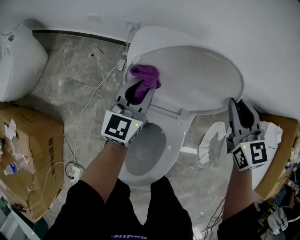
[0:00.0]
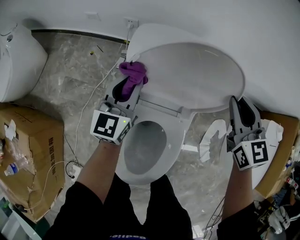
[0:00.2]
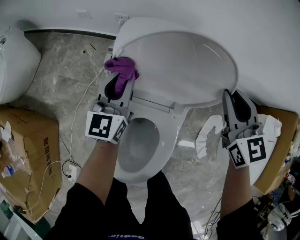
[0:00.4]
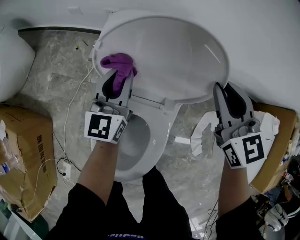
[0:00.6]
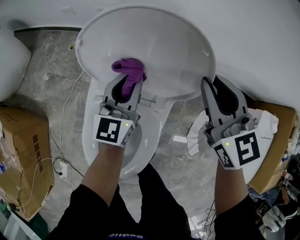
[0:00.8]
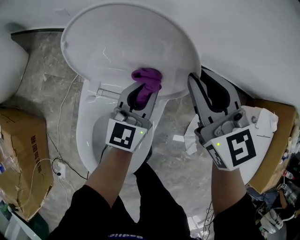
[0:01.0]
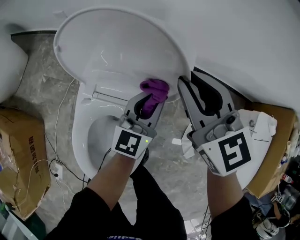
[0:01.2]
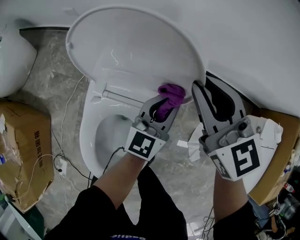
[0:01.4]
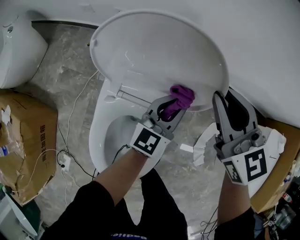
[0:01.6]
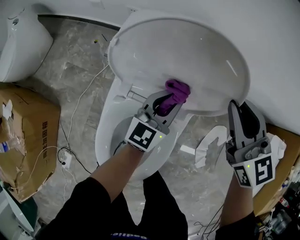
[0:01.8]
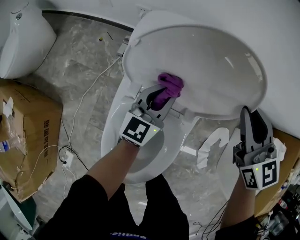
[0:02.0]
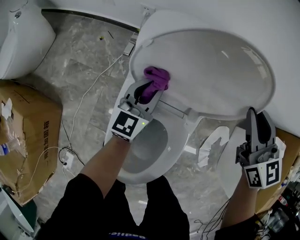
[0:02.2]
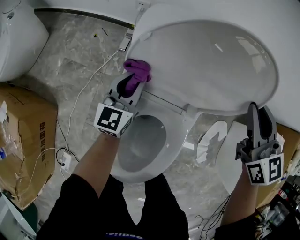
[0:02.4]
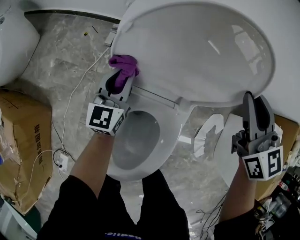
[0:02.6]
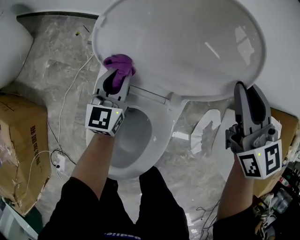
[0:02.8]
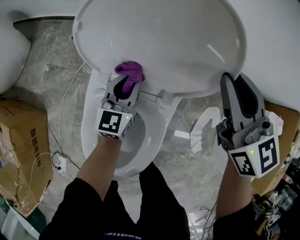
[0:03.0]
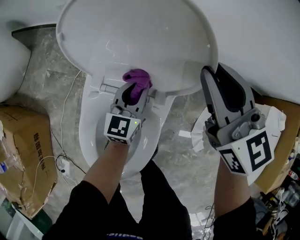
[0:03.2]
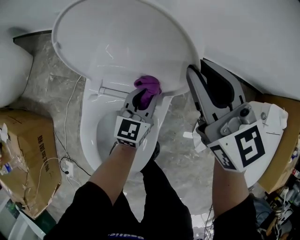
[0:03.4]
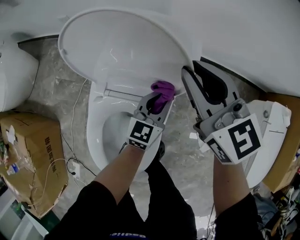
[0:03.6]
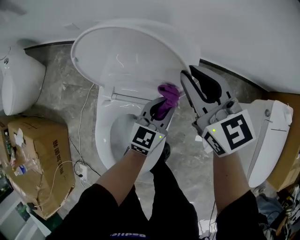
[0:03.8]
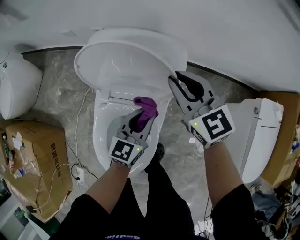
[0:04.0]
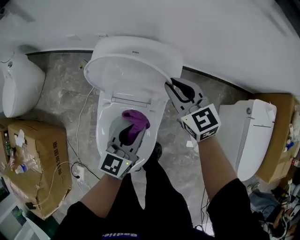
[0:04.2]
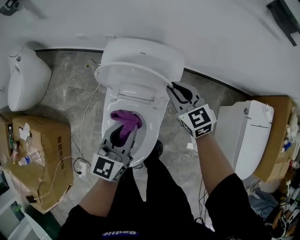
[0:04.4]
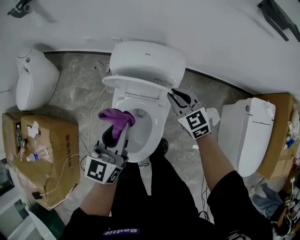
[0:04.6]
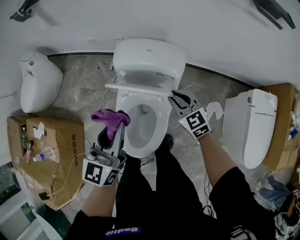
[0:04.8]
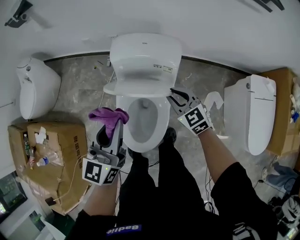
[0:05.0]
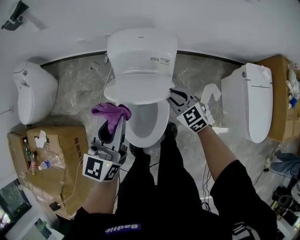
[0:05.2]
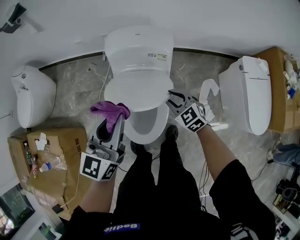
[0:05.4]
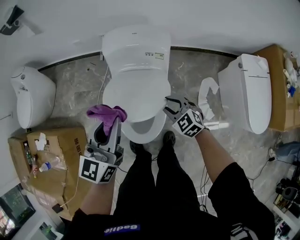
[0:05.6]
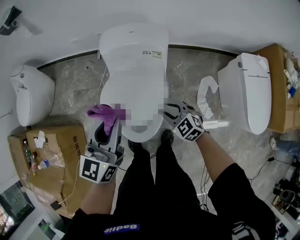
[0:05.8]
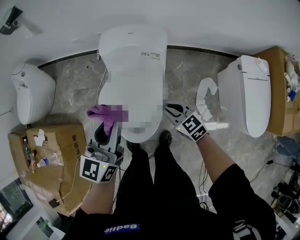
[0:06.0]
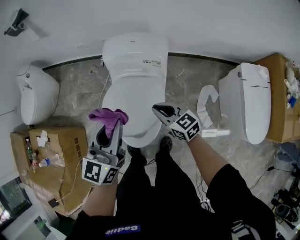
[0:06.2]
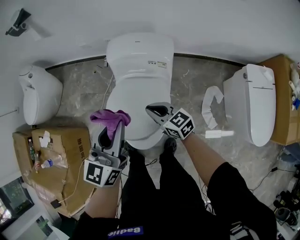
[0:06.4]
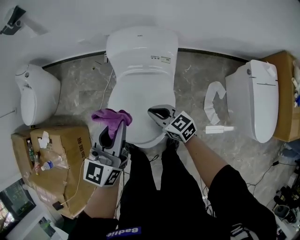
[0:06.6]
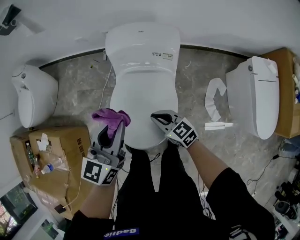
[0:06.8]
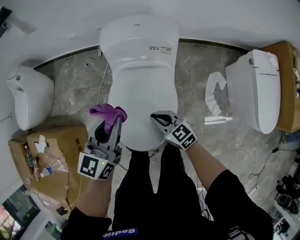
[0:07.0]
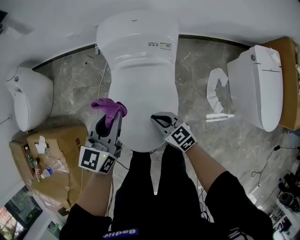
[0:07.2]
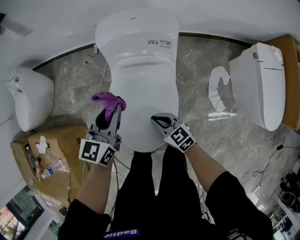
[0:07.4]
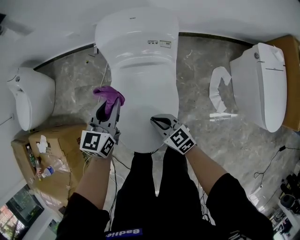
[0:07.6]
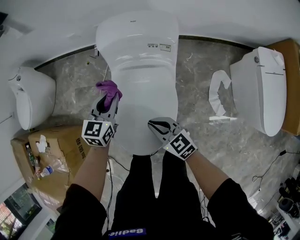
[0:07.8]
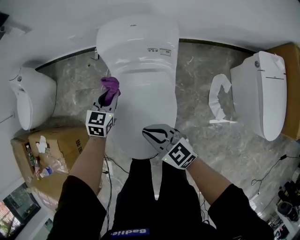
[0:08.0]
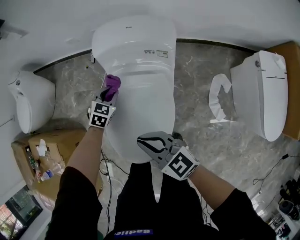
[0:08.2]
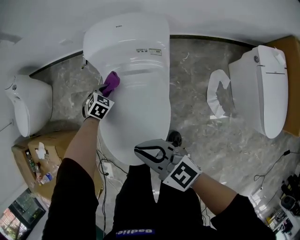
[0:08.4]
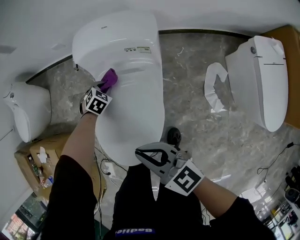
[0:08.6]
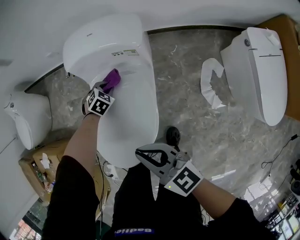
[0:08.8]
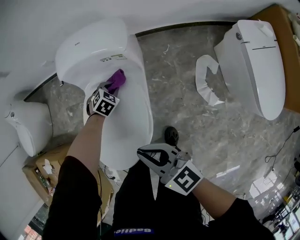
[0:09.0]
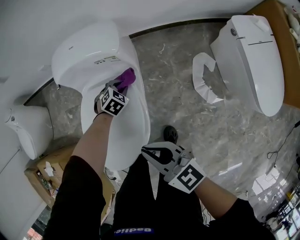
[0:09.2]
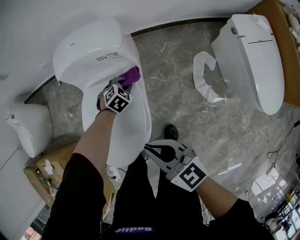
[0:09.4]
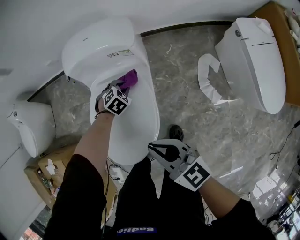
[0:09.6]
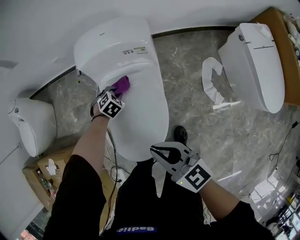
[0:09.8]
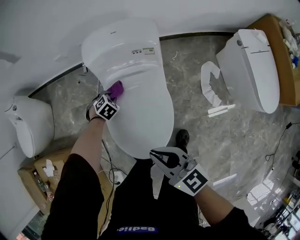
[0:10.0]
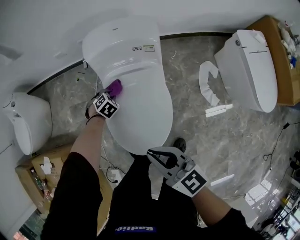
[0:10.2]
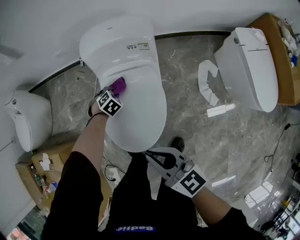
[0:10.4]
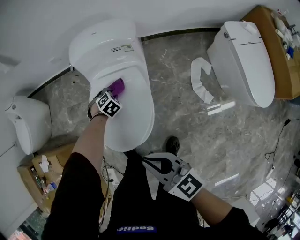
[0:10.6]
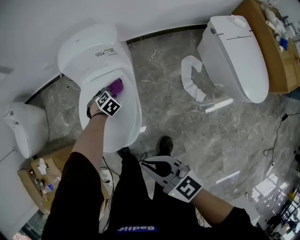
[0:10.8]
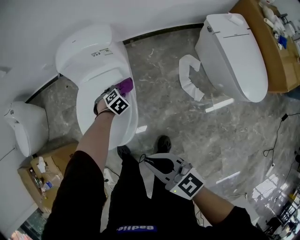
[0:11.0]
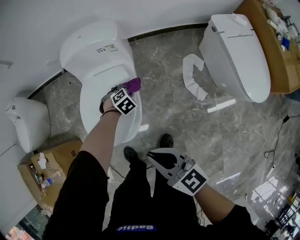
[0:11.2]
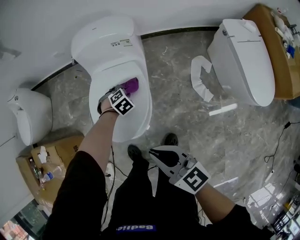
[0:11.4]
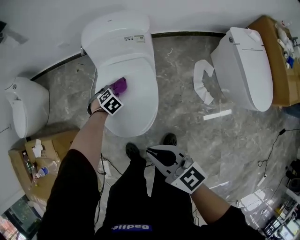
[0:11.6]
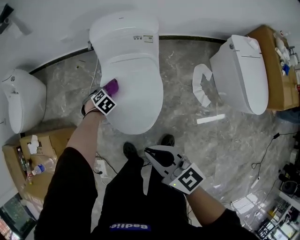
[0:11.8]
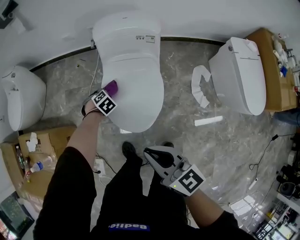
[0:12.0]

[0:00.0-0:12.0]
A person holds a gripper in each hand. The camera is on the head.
0:00.0 to 0:01.6: The left gripper shifts approximately 20 cm to the right.
0:01.6 to 0:03.0: The left gripper heads to the left and downward, covering approximately 15 cm.
0:03.0 to 0:04.4: The left gripper heads upward and backward, covering roughly 30 cm.
0:04.4 to 0:06.0: The left gripper is displaced upward, backward and to the left by about 15 cm. Meanwhile the right gripper heads backward, covering about 25 cm.
0:06.0 to 0:07.6: The right gripper moves to the left and downward, roughly 15 cm. The left gripper heads downward and forward, covering roughly 20 cm.
0:07.6 to 0:09.0: The right gripper travels upward and to the right by about 20 cm; the left gripper travels downward and to the right by approximately 30 cm, and points its fingers some 50 degrees further downward.
0:09.0 to 0:10.4: The left gripper moves some 15 cm, while the right gripper moves approximately 15 cm.

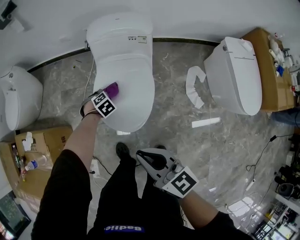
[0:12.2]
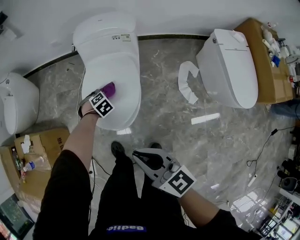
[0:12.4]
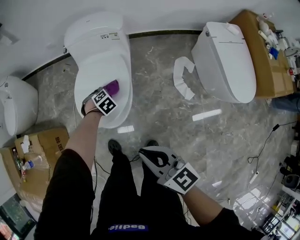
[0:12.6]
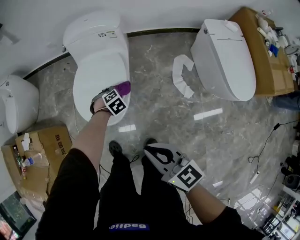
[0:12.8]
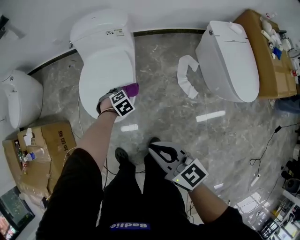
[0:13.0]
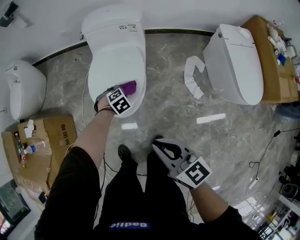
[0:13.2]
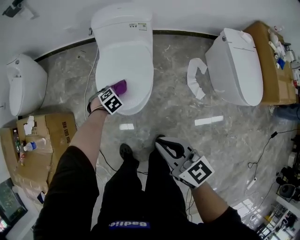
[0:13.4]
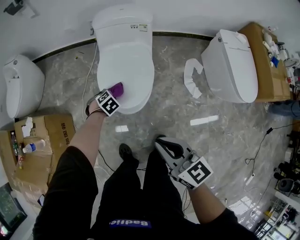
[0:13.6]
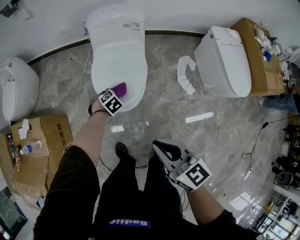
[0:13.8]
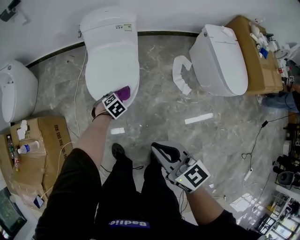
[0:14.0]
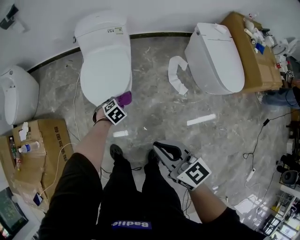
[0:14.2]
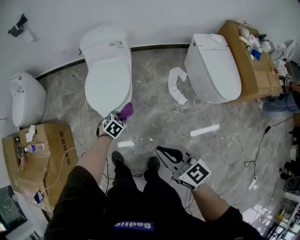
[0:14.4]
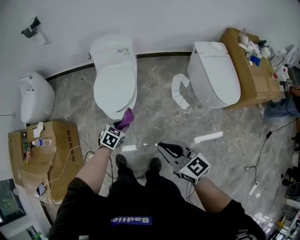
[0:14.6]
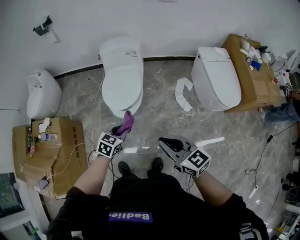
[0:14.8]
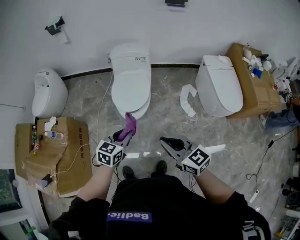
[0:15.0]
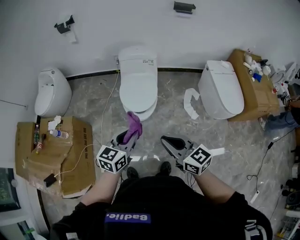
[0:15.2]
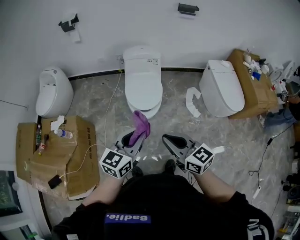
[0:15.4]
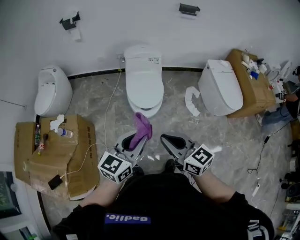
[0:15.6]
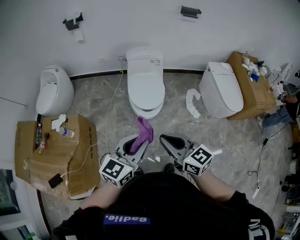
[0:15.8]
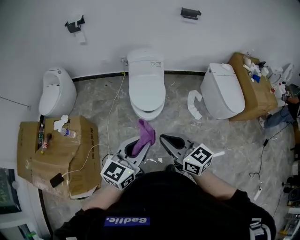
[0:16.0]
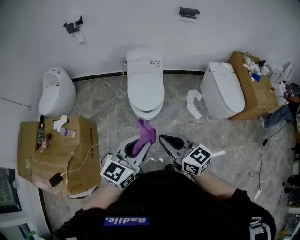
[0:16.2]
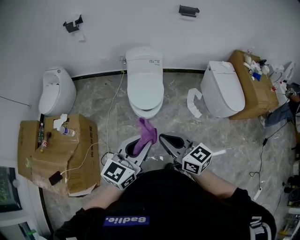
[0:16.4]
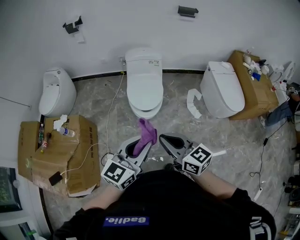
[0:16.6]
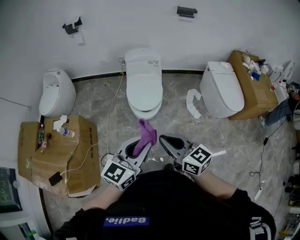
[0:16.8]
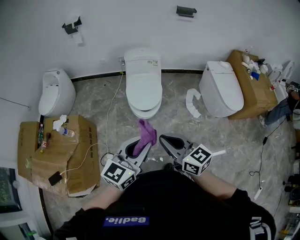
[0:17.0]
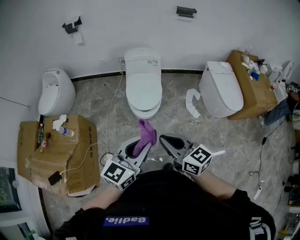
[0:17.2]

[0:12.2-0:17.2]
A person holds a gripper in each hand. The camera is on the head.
0:12.2 to 0:13.8: The right gripper changes place by about 15 cm.
0:13.8 to 0:15.6: The left gripper goes roughly 50 cm upward, and points its fingers roughly 70 degrees further upward, while the right gripper shifts approximately 20 cm upward.
0:15.6 to 0:17.2: The left gripper is displaced to the right by about 5 cm.

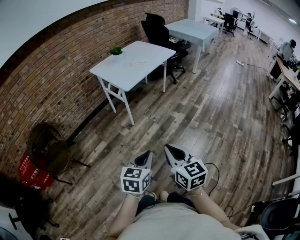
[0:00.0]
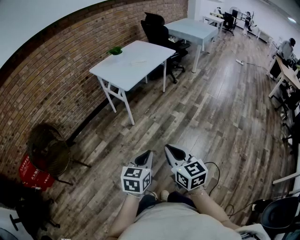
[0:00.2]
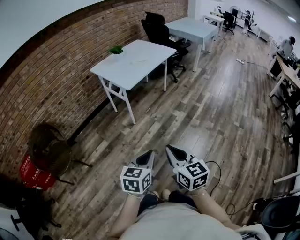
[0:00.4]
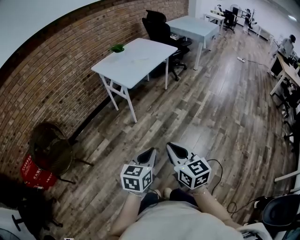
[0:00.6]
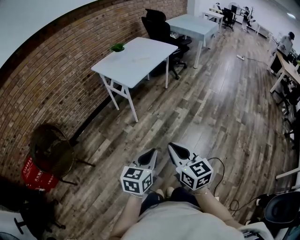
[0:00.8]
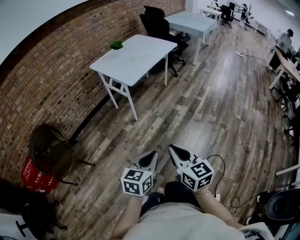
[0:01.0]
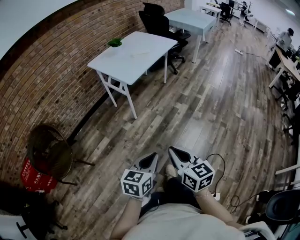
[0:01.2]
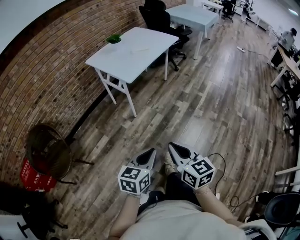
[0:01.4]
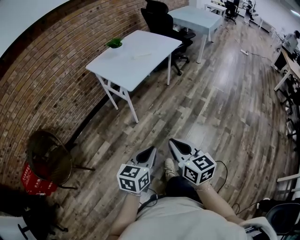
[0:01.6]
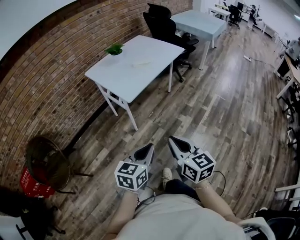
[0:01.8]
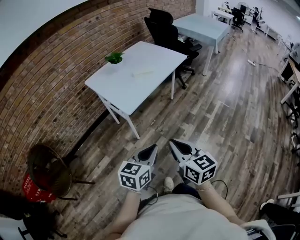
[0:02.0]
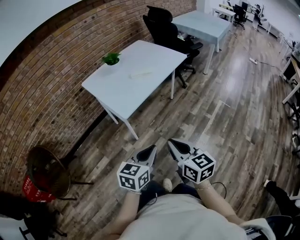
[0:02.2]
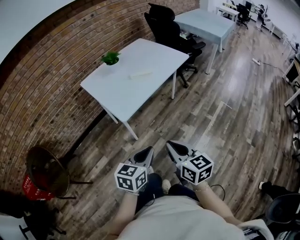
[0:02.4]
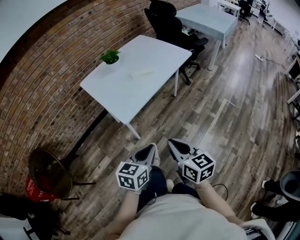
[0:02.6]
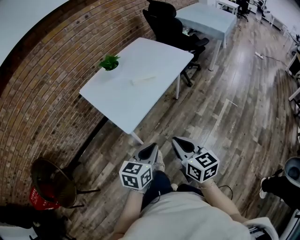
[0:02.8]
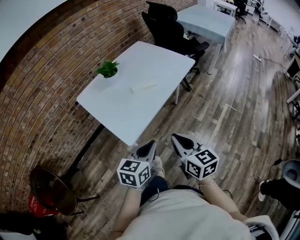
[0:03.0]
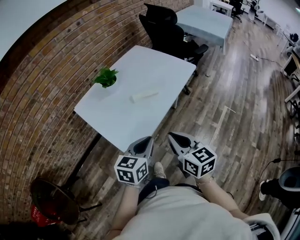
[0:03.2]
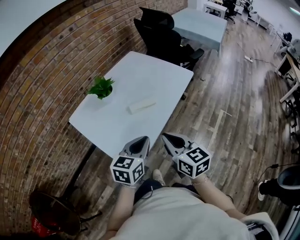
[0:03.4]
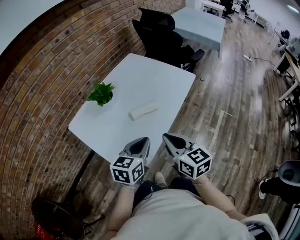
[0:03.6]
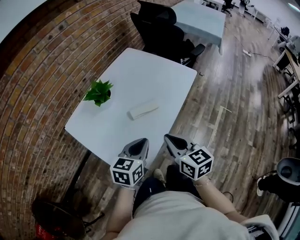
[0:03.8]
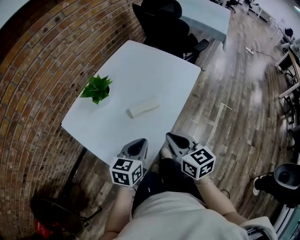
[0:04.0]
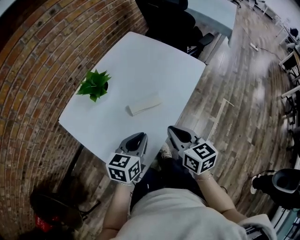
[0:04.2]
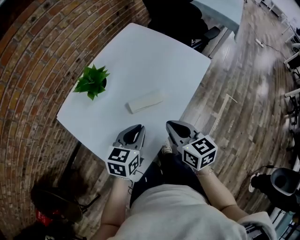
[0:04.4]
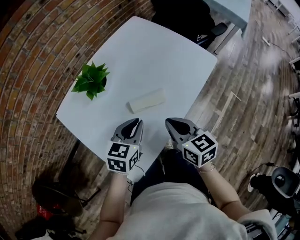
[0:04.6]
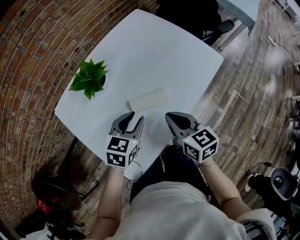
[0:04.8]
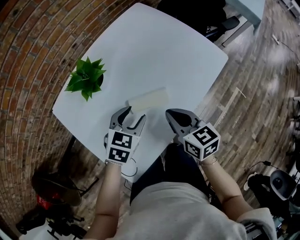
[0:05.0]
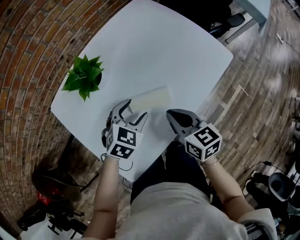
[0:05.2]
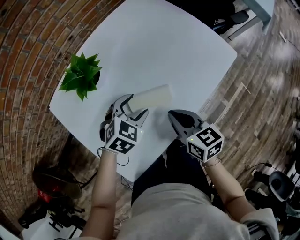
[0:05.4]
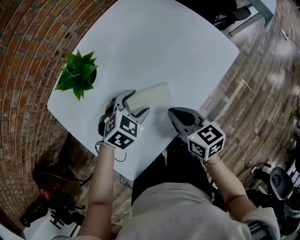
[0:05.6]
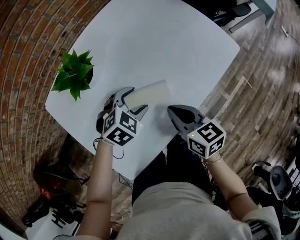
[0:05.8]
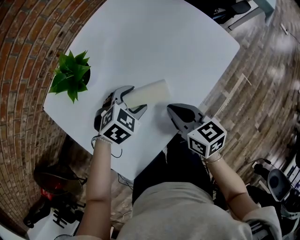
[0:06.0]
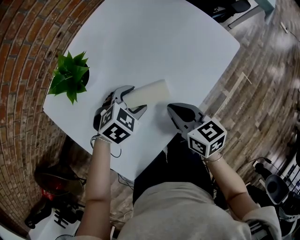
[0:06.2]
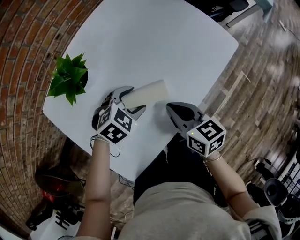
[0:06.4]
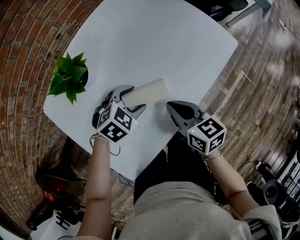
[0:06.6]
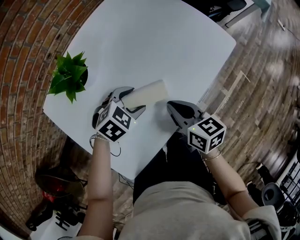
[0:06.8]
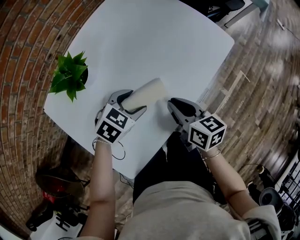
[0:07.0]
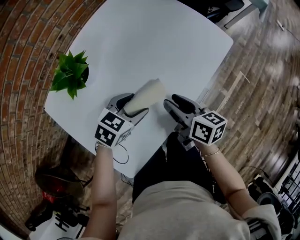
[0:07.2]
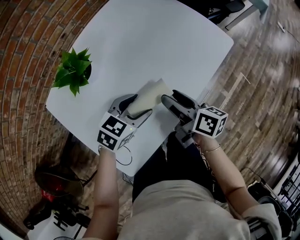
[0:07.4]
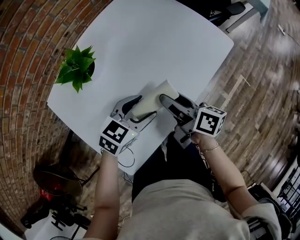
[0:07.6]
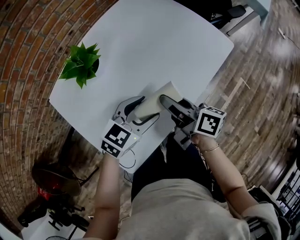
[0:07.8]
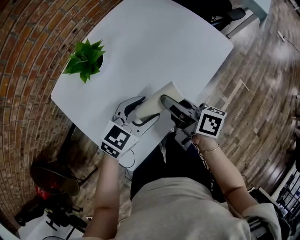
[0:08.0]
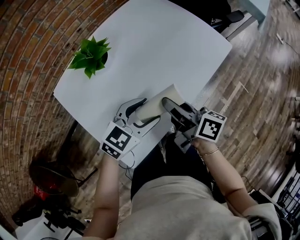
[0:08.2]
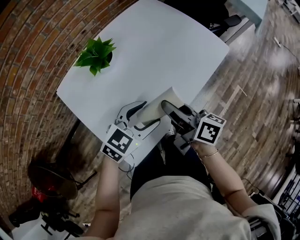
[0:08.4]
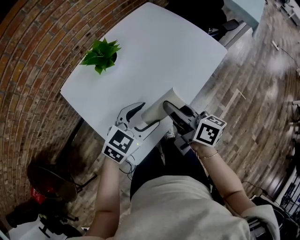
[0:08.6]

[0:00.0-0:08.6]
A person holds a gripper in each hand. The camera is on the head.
0:00.0 to 0:01.4: Both grippers move to the left and forward, approximately 10 cm.
0:01.4 to 0:02.8: The two grippers travel together, forward, about 40 cm.
0:02.8 to 0:04.4: The grippers both shift forward by some 40 cm.
0:04.4 to 0:05.8: The left gripper moves forward and downward, about 20 cm, turns by roughly 40 degrees, and opens up; the right gripper heads downward and forward, covering some 15 cm.
0:05.8 to 0:07.2: The right gripper turns by about 20 degrees, and opens up. The left gripper rotates some 20 degrees.
0:07.2 to 0:08.6: The left gripper shifts roughly 15 cm backward and upward, and turns by roughly 20 degrees. The right gripper goes about 15 cm upward, backward and to the left, and opens, then closes again.
